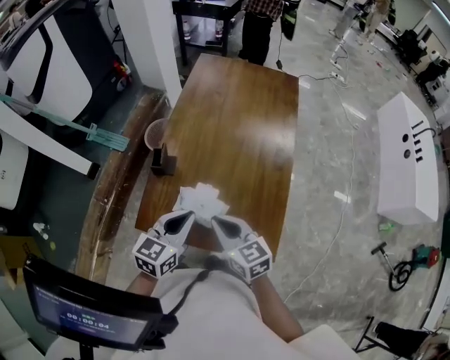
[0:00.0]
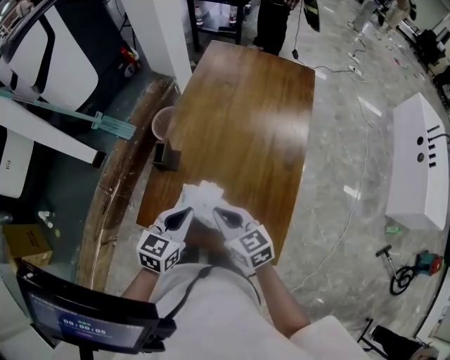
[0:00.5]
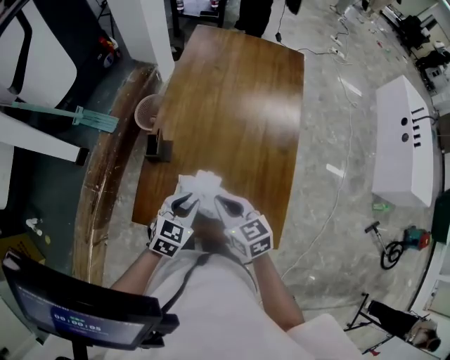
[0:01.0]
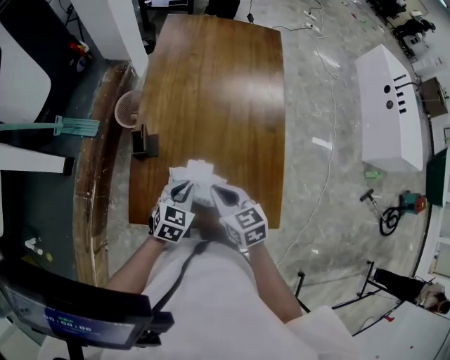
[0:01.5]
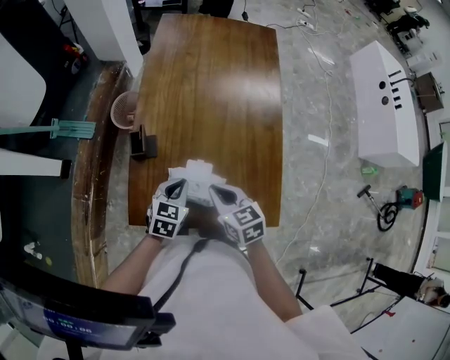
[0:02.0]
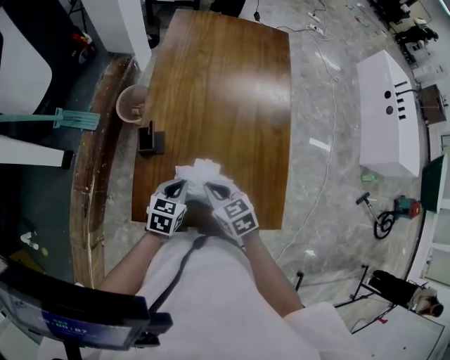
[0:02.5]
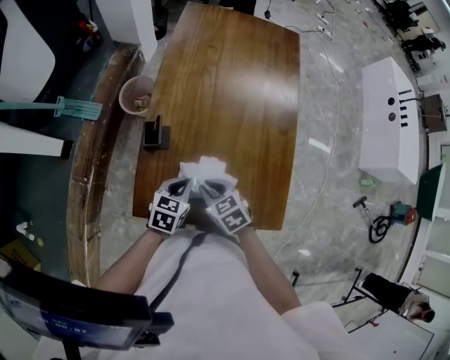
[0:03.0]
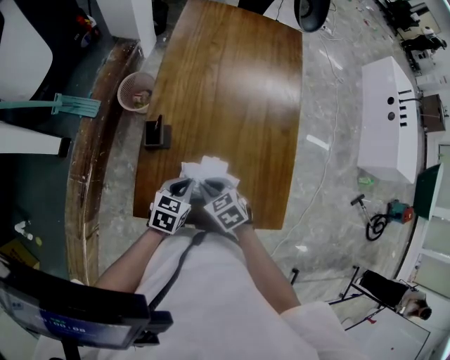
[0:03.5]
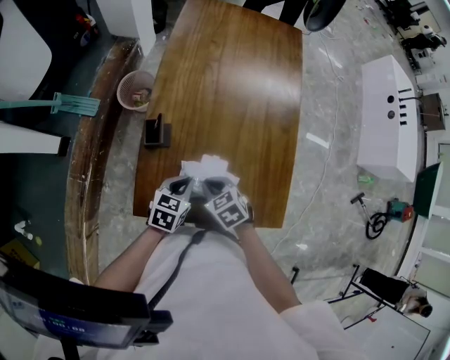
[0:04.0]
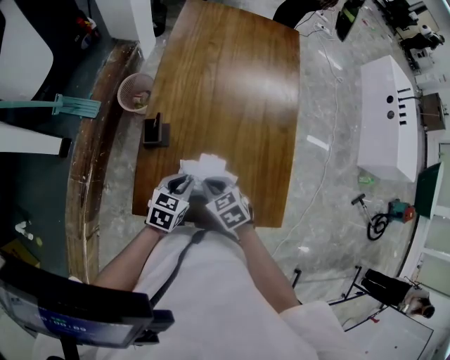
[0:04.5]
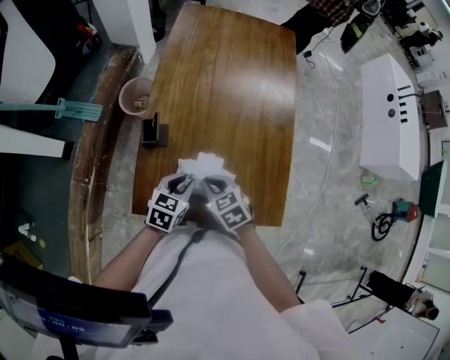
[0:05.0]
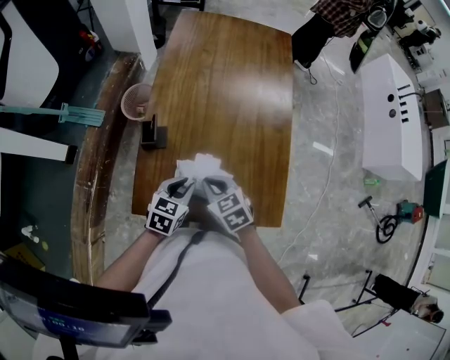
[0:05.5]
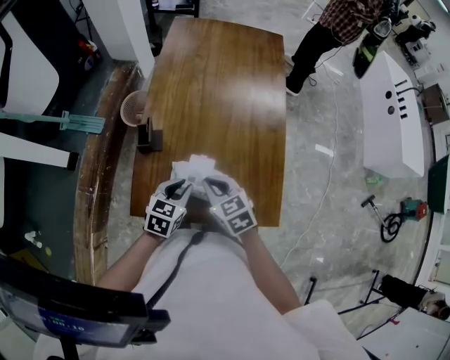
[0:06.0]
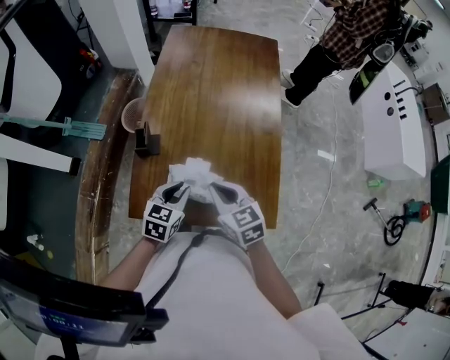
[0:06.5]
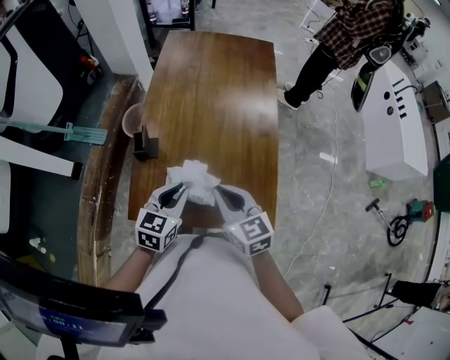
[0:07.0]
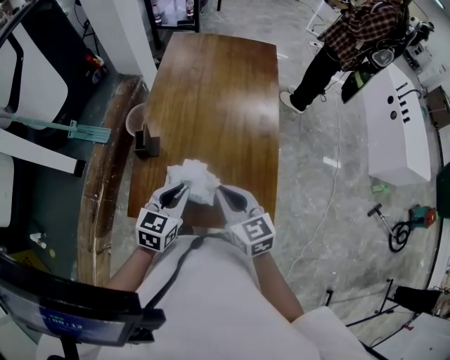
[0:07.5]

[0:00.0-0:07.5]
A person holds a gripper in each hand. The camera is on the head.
0:00.0 to 0:02.0: The right gripper is displaced downward by roughly 10 cm; the left gripper shifts some 15 cm downward, swivels about 20 degrees, and opens, then closes again.
0:02.0 to 0:04.0: The right gripper heads downward and to the left, covering roughly 10 cm, and changes its angle by some 30 degrees.
0:04.0 to 0:05.5: The right gripper heads upward, covering approximately 5 cm.
0:05.5 to 0:07.5: The left gripper travels upward by roughly 10 cm. Meanwhile the right gripper moves upward and to the right, some 15 cm, and rotates approximately 30 degrees.

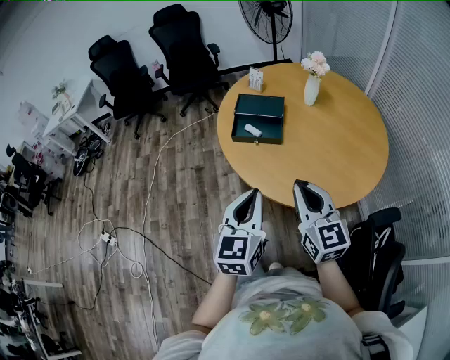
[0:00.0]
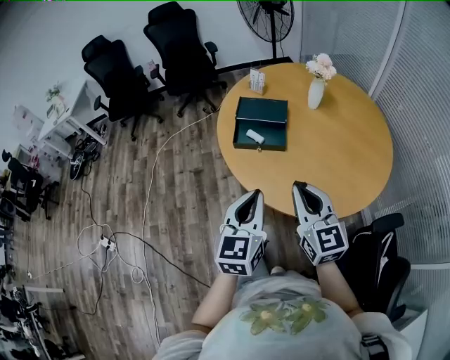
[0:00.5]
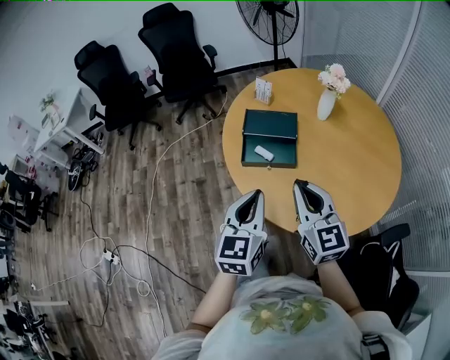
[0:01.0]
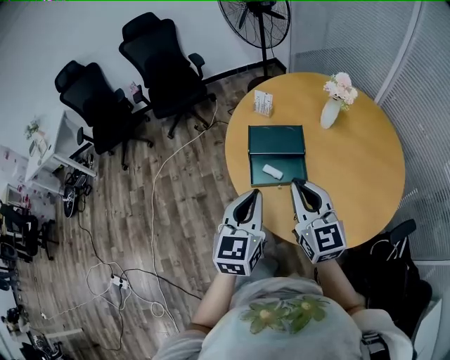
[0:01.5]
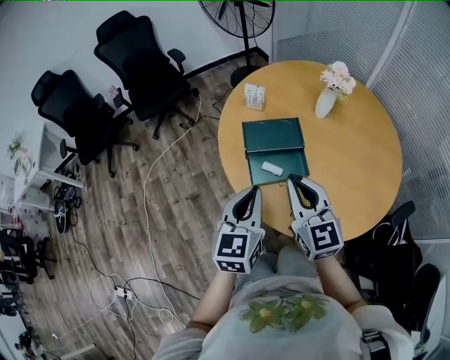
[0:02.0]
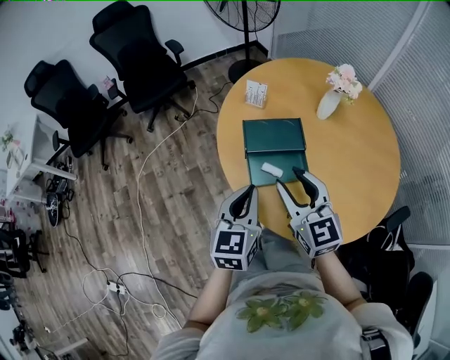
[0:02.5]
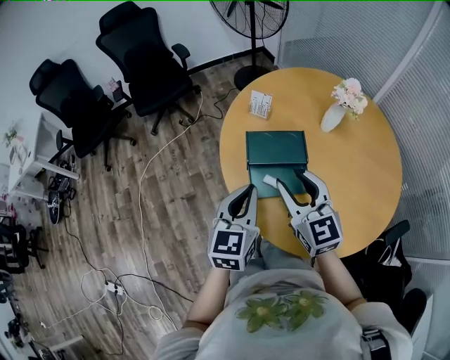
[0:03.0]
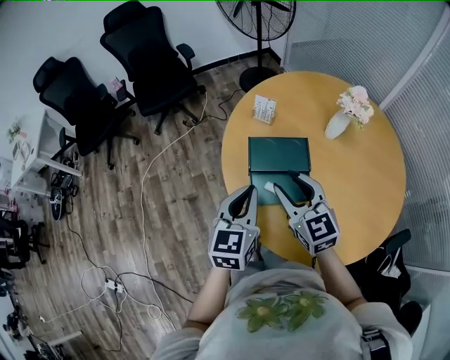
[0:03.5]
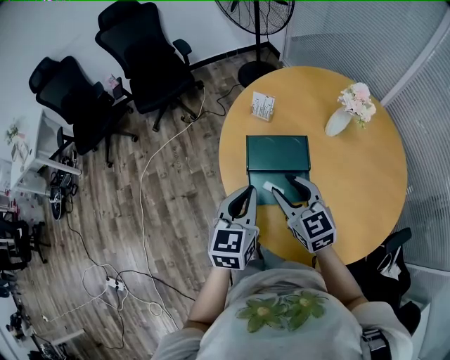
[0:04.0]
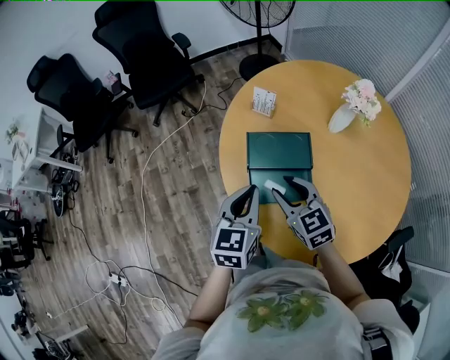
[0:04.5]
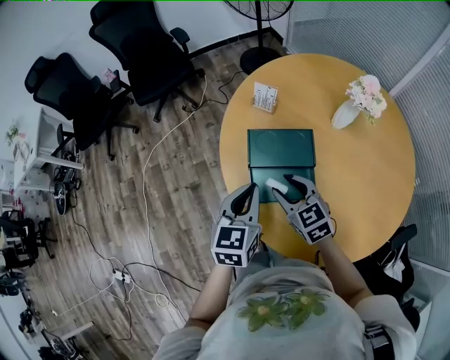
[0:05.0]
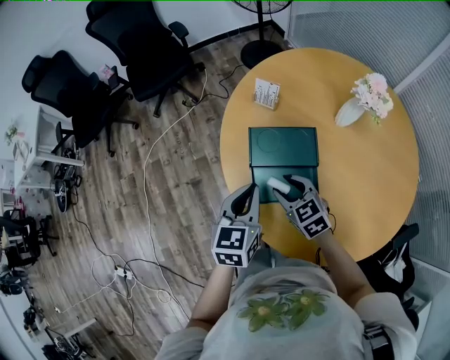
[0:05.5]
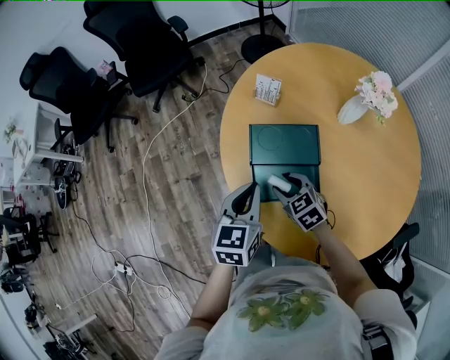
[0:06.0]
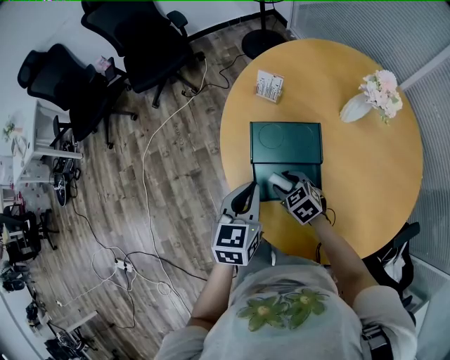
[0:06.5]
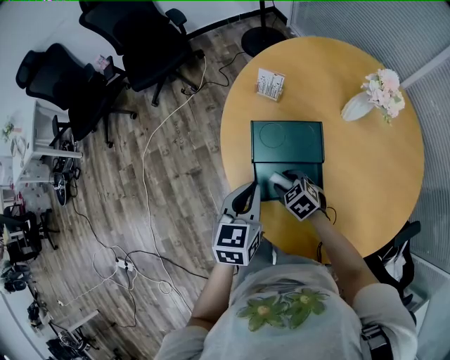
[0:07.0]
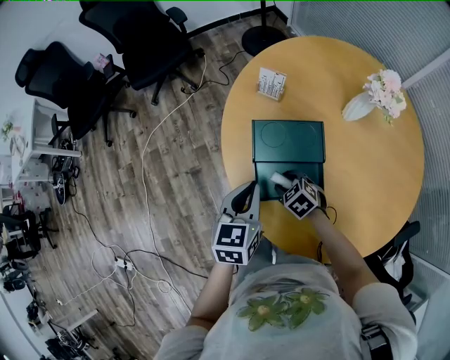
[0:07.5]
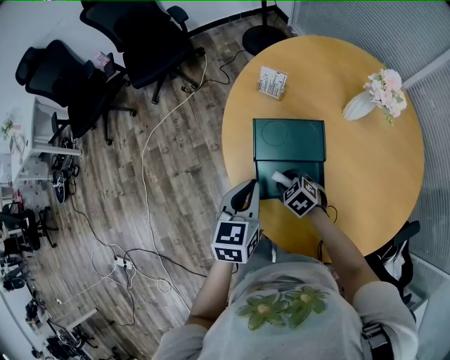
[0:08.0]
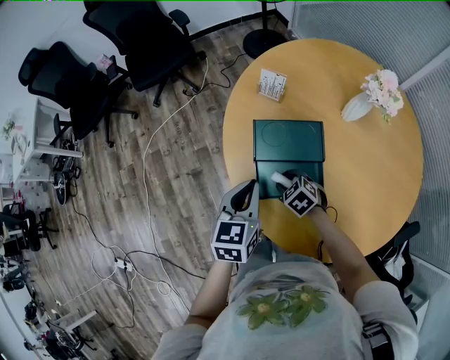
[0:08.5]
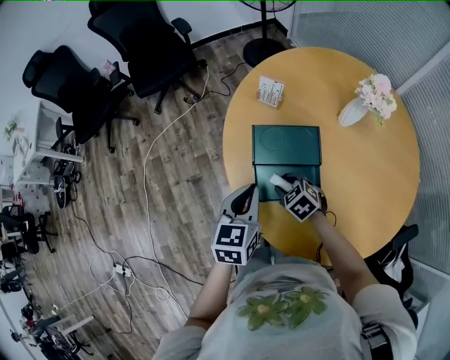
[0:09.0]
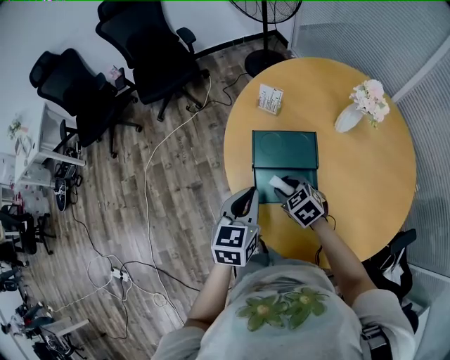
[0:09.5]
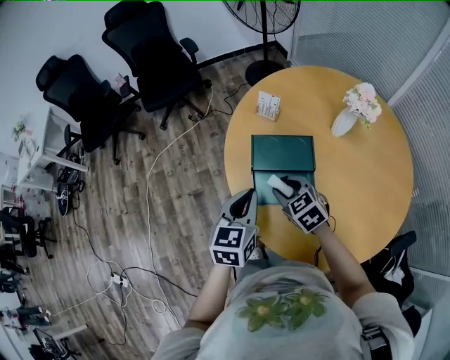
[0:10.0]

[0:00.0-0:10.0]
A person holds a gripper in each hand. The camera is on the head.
0:00.0 to 0:02.0: Both grippers move forward and to the left, roughly 35 cm.
0:02.0 to 0:04.0: The left gripper travels forward by roughly 10 cm. Meanwhile the right gripper heads forward and downward, covering some 15 cm, changes its angle by some 20 degrees, and opens up.
0:04.0 to 0:06.0: The left gripper moves downward, approximately 5 cm; the right gripper heads downward, covering roughly 15 cm, and swivels about 30 degrees.
0:06.0 to 0:08.0: The right gripper goes approximately 10 cm downward.
0:08.0 to 0:10.0: The right gripper goes some 15 cm upward. Meanwhile the left gripper shifts by some 5 cm.

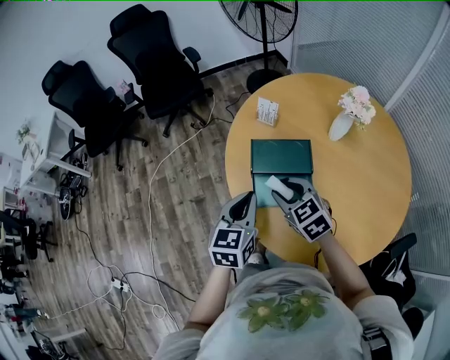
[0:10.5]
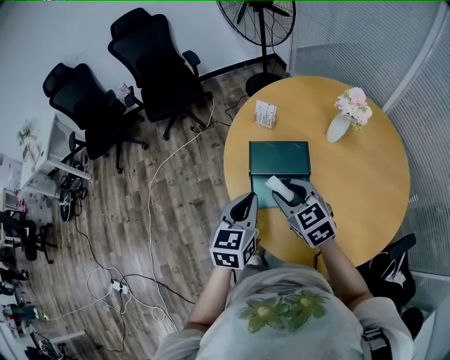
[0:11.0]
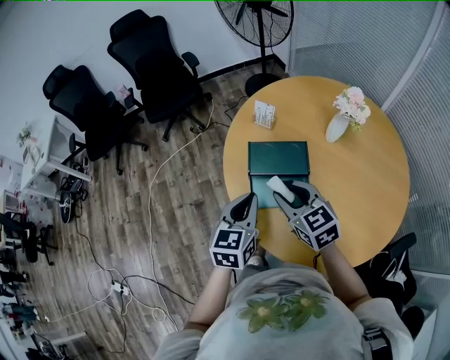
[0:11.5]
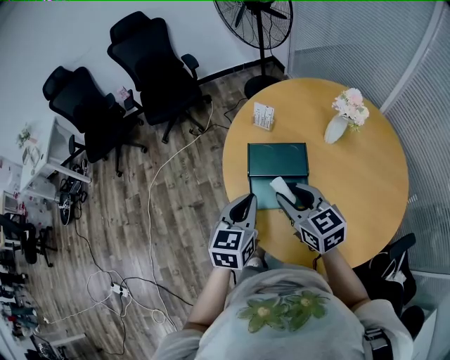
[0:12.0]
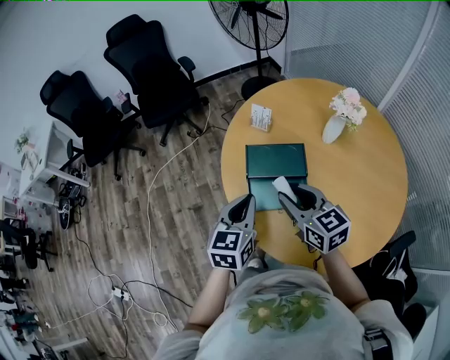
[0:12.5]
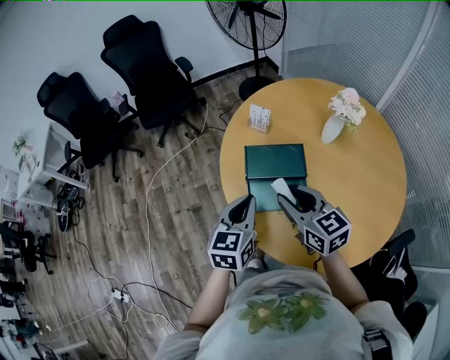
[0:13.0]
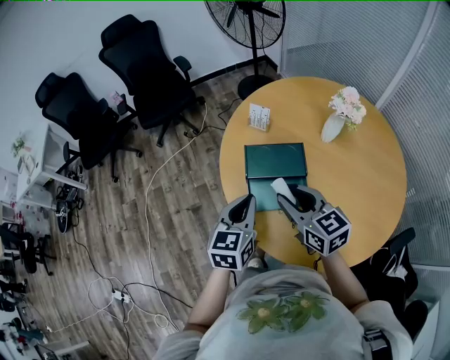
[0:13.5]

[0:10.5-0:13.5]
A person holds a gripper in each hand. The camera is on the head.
0:10.5 to 0:12.0: The right gripper goes roughly 5 cm upward.
0:12.0 to 0:13.5: The grippers move only a little.

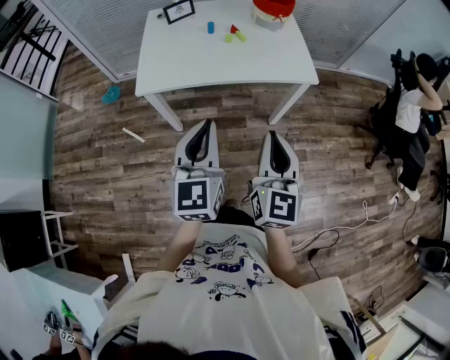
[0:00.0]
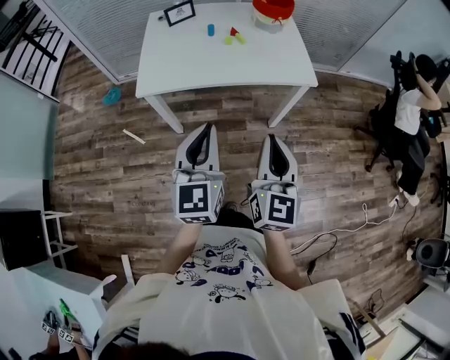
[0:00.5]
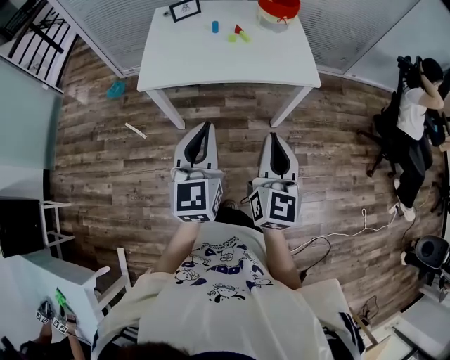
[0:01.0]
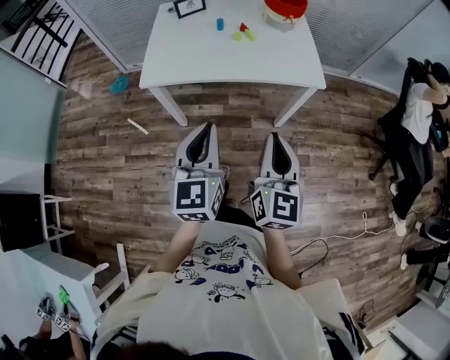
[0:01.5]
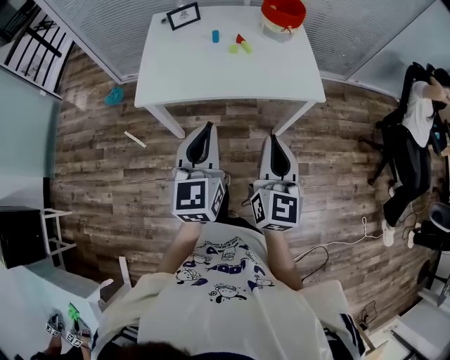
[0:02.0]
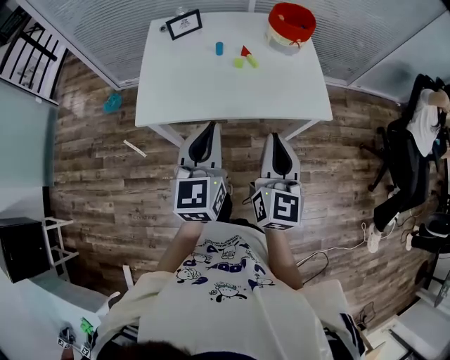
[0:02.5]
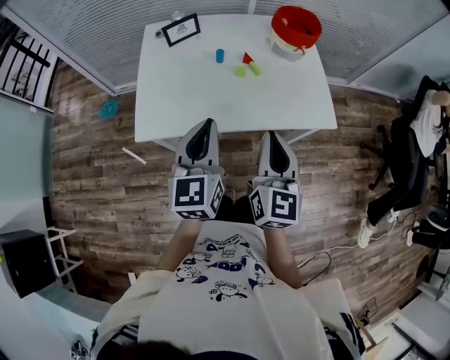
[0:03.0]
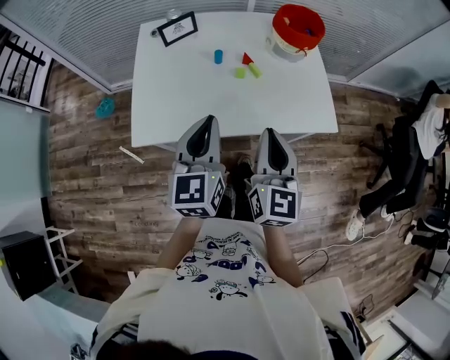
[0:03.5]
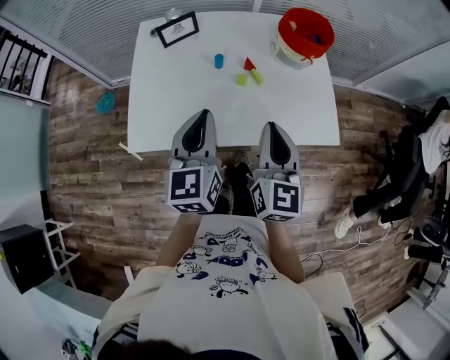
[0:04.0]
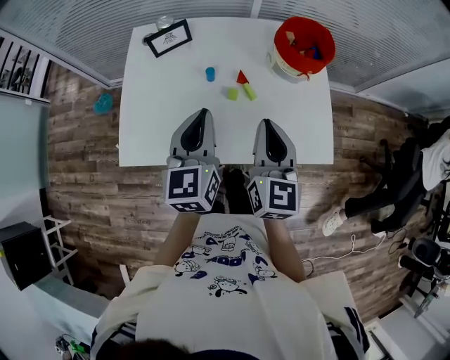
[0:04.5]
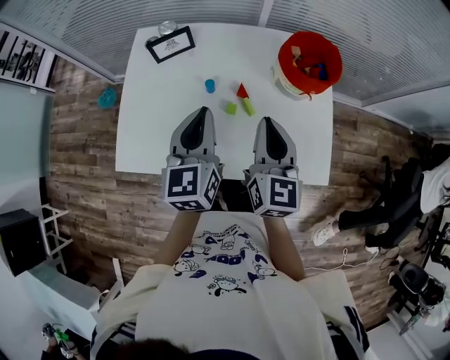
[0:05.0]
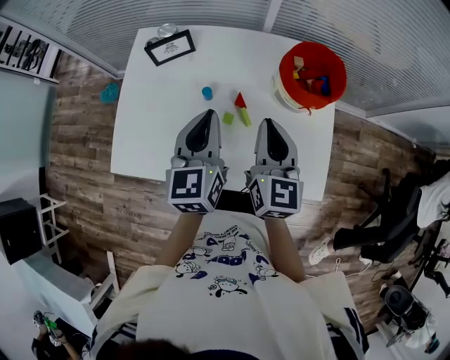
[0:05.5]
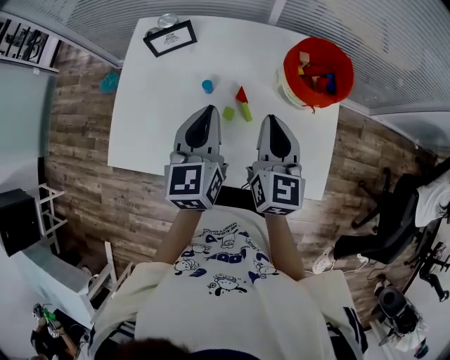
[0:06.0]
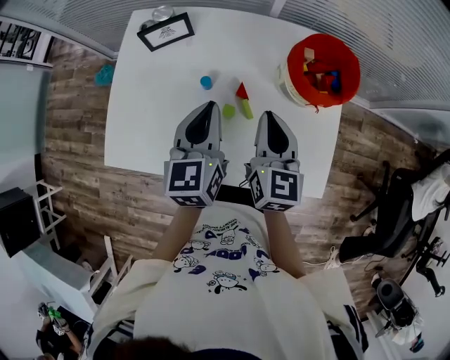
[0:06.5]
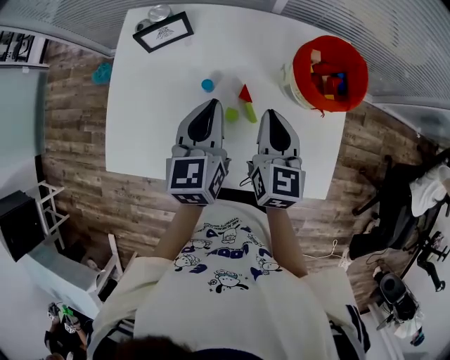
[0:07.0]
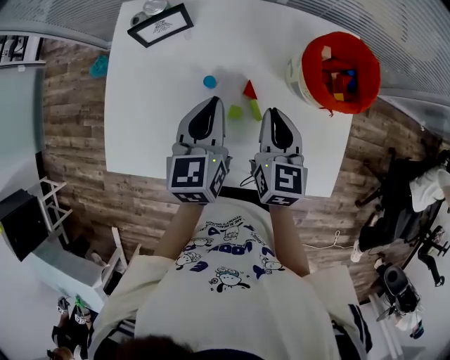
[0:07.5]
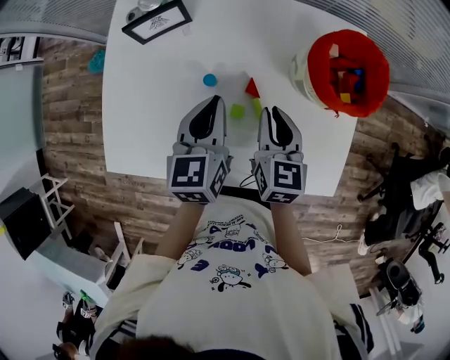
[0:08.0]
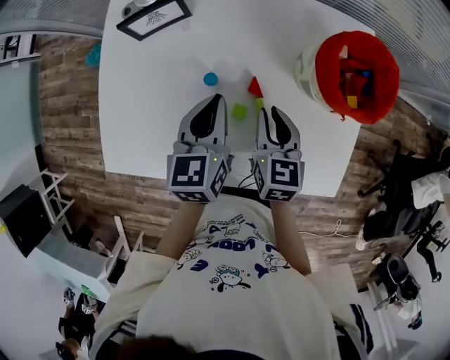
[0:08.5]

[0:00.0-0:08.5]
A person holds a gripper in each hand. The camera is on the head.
0:00.0 to 0:02.0: The grippers both shift forward by roughly 5 cm.
0:02.0 to 0:04.0: Both grippers travel together forward, some 25 cm.
0:04.0 to 0:06.5: The right gripper heads forward, covering roughly 20 cm. Meanwhile the left gripper heads forward and to the right, covering about 15 cm.
0:06.5 to 0:08.5: Both grippers travel together downward, approximately 10 cm.
